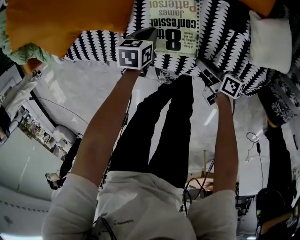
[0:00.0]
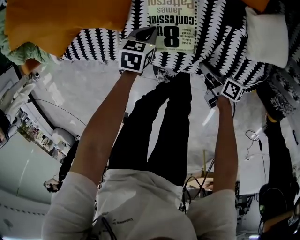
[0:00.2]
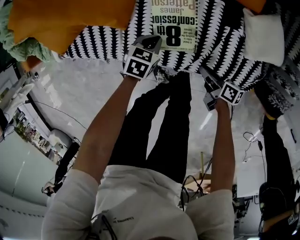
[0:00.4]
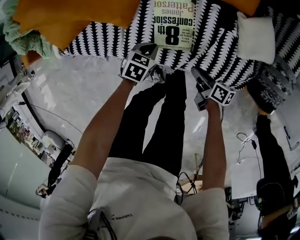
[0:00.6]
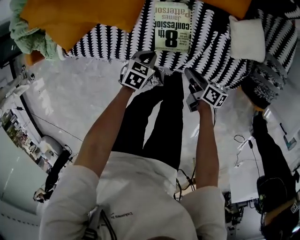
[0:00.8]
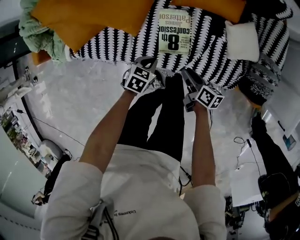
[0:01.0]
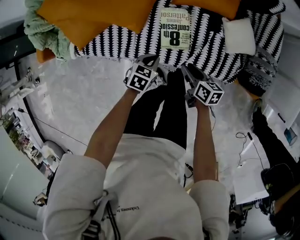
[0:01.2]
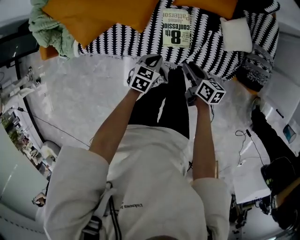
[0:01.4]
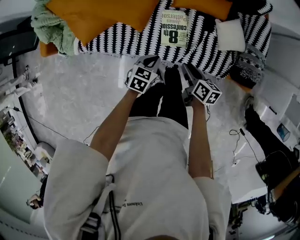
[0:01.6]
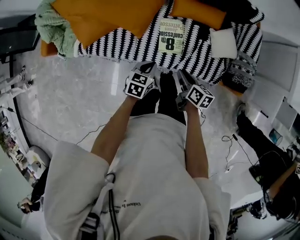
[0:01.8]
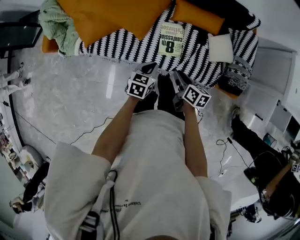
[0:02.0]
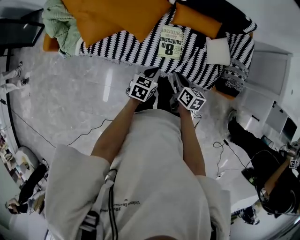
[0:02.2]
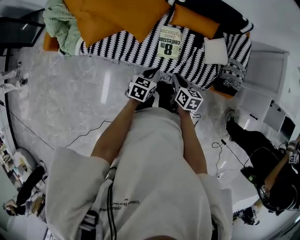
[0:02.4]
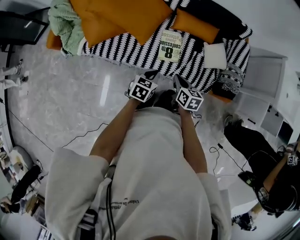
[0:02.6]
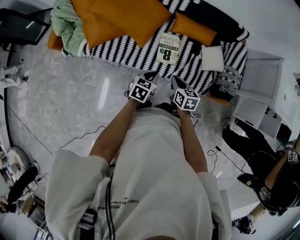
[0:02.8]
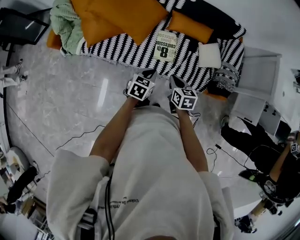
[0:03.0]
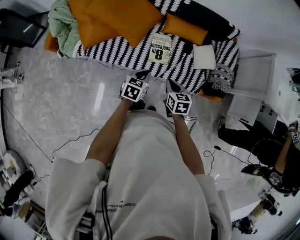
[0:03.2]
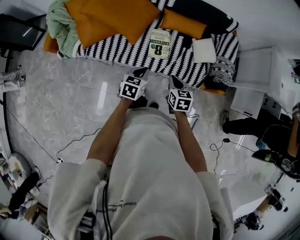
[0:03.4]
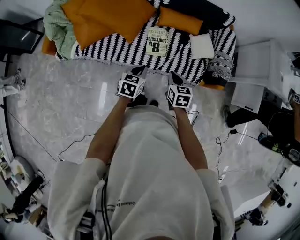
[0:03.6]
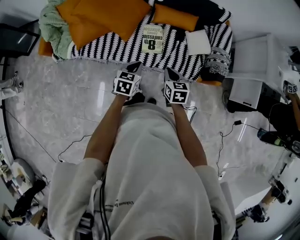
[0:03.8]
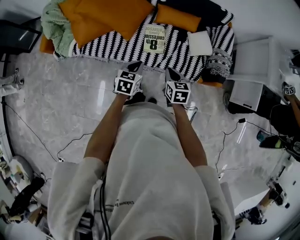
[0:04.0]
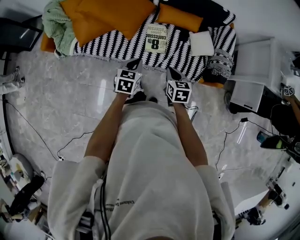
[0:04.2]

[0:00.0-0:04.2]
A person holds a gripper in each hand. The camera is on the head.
0:00.0 to 0:01.4: The left gripper travels upward and backward by roughly 25 cm, and swivels some 20 degrees; the right gripper heads upward, covering roughly 25 cm, and rotates some 30 degrees.
0:01.4 to 0:02.8: The two grippers go about 15 cm upward and backward. The right gripper rotates approximately 30 degrees, and closes.
0:02.8 to 0:04.2: The right gripper travels to the right by some 5 cm. The left gripper shifts by some 5 cm.

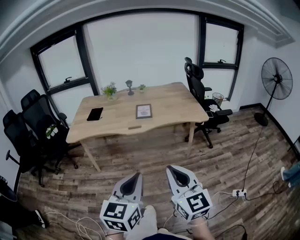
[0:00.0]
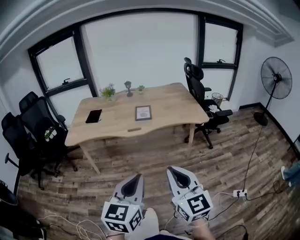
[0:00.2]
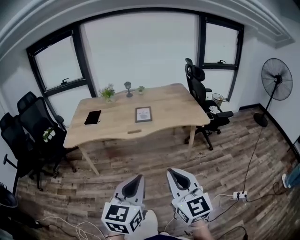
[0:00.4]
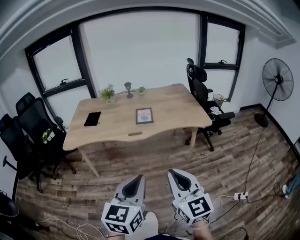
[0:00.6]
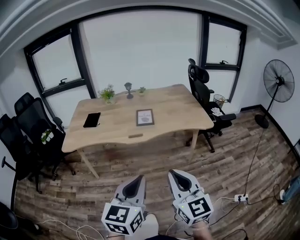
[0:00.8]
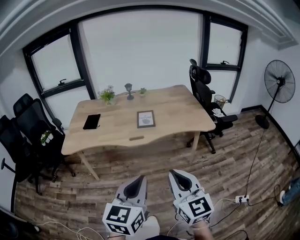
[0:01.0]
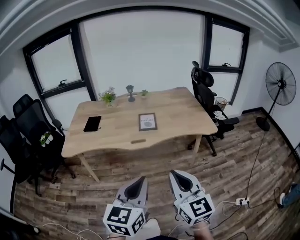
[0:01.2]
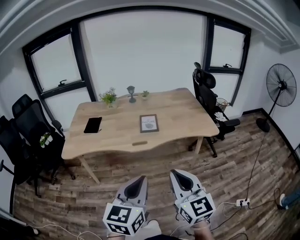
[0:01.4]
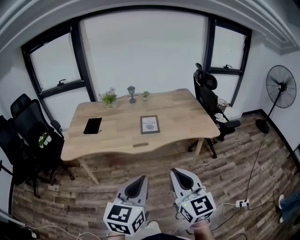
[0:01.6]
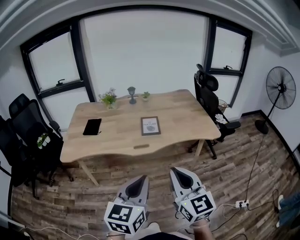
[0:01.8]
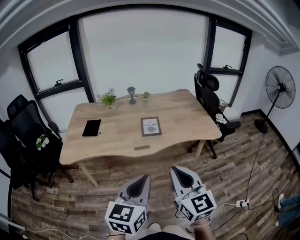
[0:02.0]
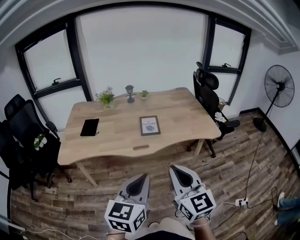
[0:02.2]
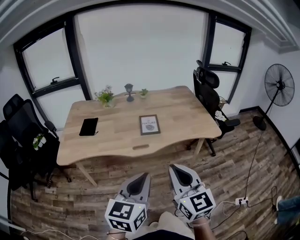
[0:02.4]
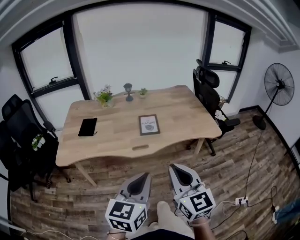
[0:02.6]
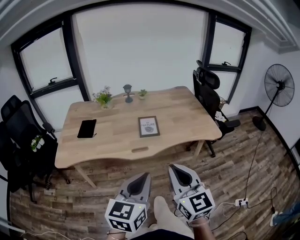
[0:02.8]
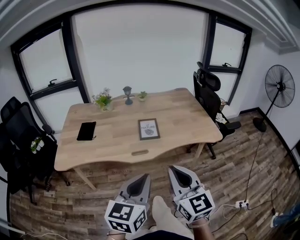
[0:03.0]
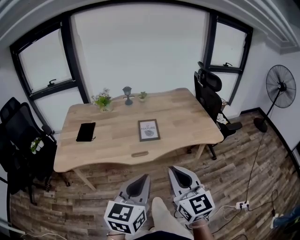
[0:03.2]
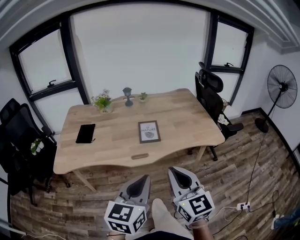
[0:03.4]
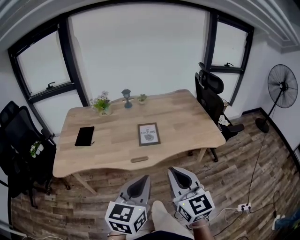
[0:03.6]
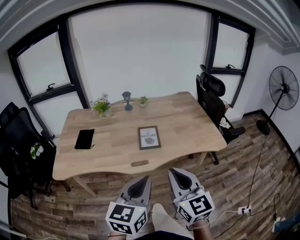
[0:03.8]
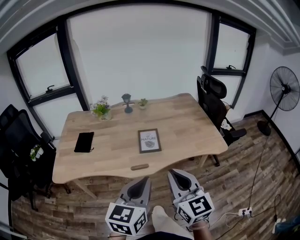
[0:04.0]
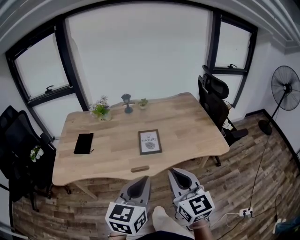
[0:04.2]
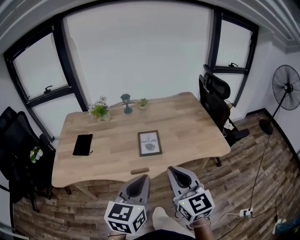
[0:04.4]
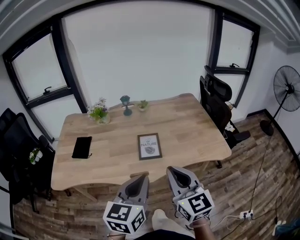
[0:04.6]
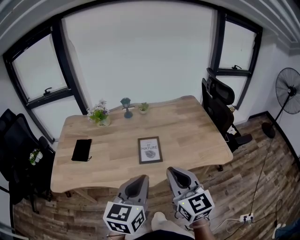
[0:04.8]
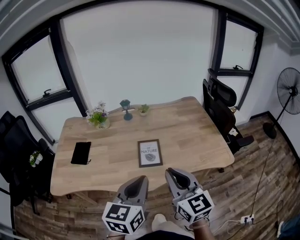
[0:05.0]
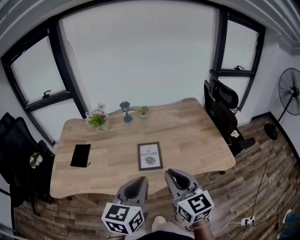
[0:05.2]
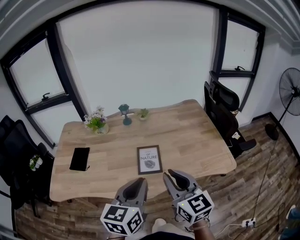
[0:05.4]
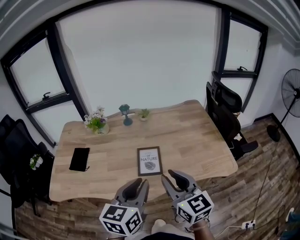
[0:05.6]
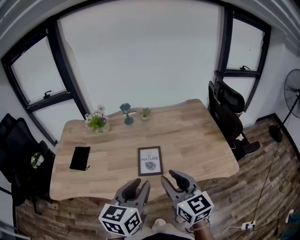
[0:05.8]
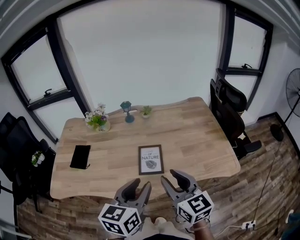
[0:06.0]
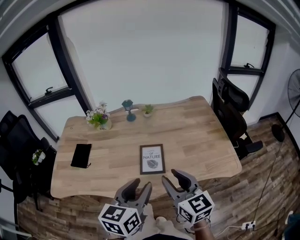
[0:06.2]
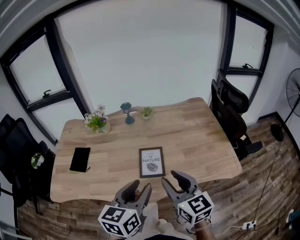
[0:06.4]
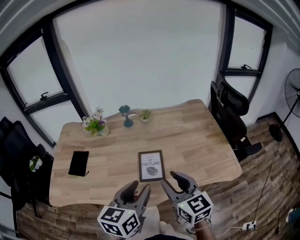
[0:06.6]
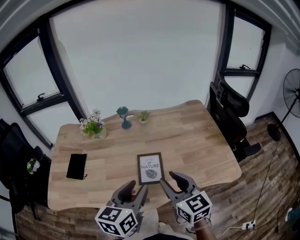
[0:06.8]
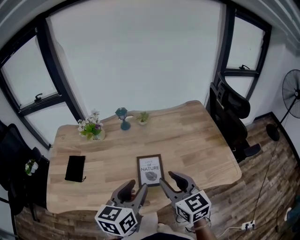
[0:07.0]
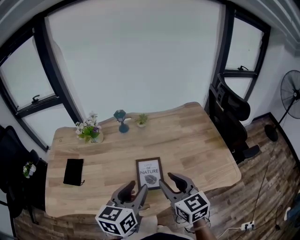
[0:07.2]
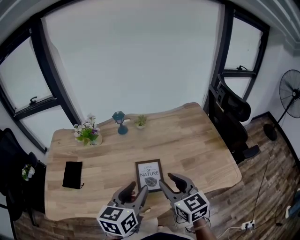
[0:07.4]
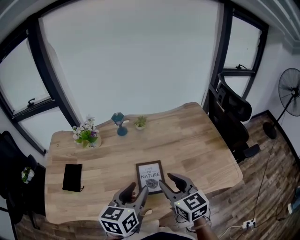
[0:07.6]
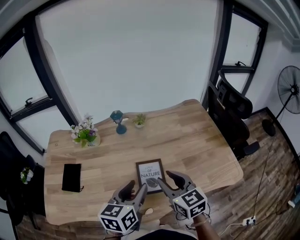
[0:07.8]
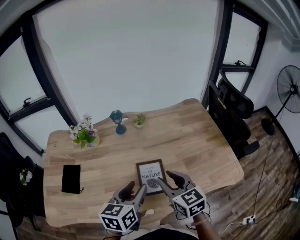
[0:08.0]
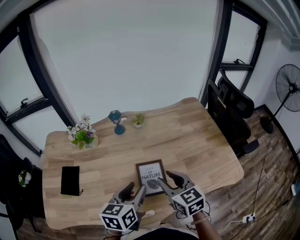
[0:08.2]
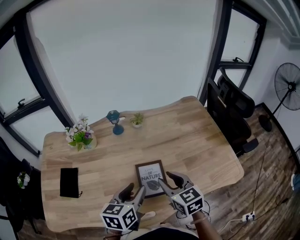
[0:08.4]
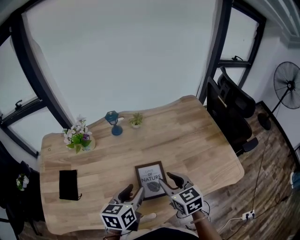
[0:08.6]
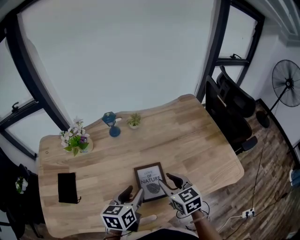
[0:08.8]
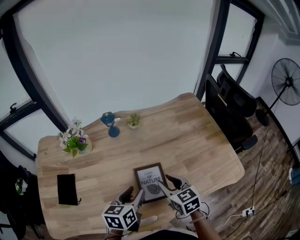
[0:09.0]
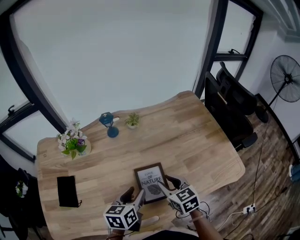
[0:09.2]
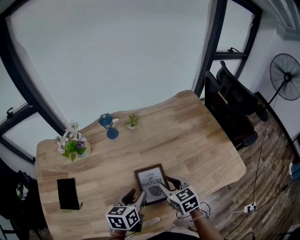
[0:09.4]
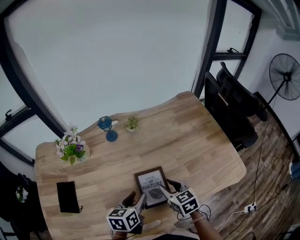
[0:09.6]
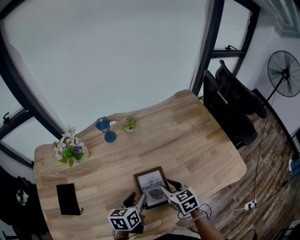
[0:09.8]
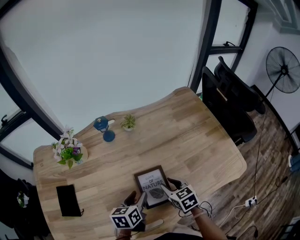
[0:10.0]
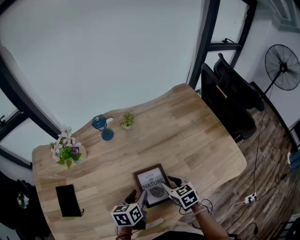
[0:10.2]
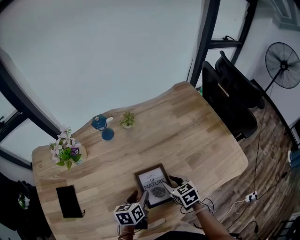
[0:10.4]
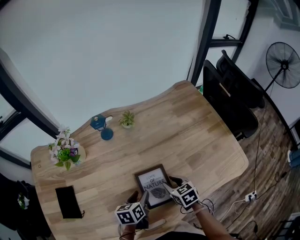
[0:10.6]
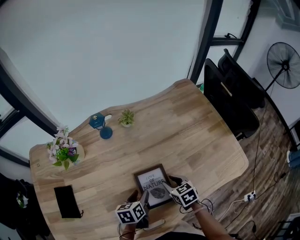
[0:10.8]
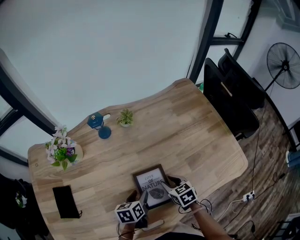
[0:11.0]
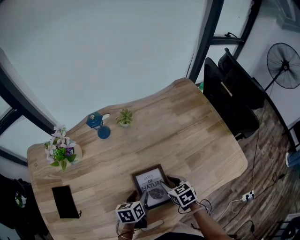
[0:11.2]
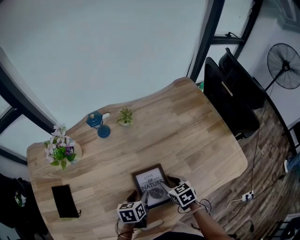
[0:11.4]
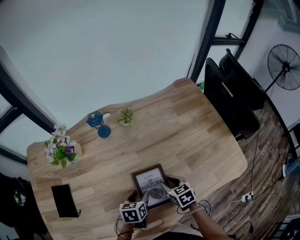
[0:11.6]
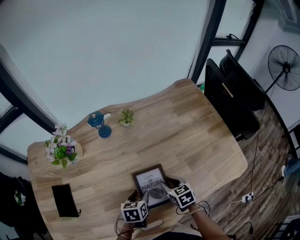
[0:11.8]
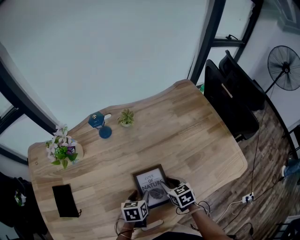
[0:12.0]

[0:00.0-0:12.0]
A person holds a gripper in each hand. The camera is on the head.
0:00.0 to 0:01.6: The two grippers go some 20 cm forward.
0:01.6 to 0:03.0: The two grippers go roughly 10 cm forward.
0:03.0 to 0:04.4: Both grippers move forward, some 15 cm.
0:04.4 to 0:06.0: Both grippers move forward, approximately 15 cm. The left gripper opens up. The right gripper opens up.
0:06.0 to 0:07.6: The right gripper shifts approximately 15 cm forward and downward, while the left gripper moves forward, approximately 15 cm.
0:07.6 to 0:09.0: Both grippers travel together downward and forward, some 15 cm.
0:09.0 to 0:10.4: The grippers both shift downward by some 10 cm.
0:10.4 to 0:12.0: The grippers stay close to where they were, moving slightly.

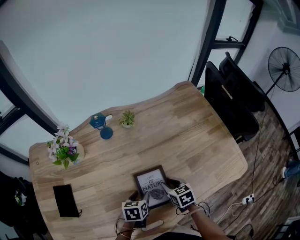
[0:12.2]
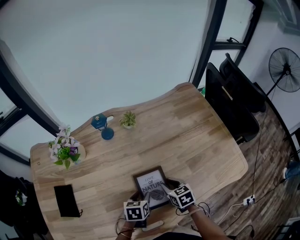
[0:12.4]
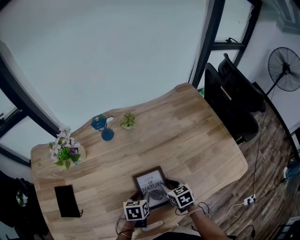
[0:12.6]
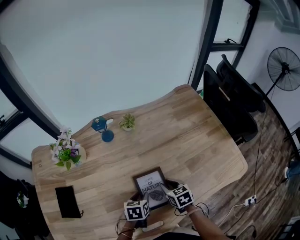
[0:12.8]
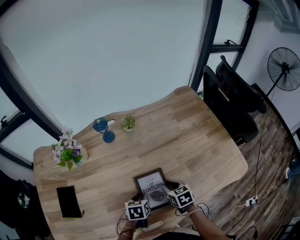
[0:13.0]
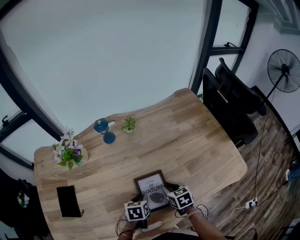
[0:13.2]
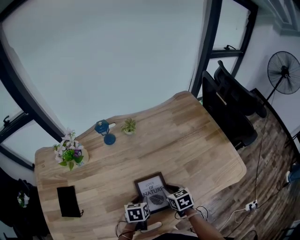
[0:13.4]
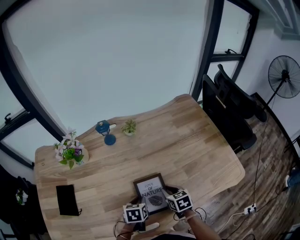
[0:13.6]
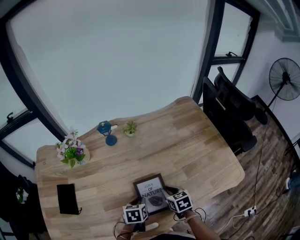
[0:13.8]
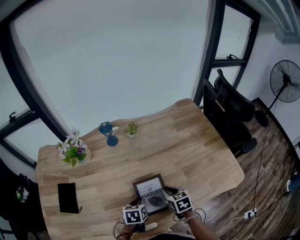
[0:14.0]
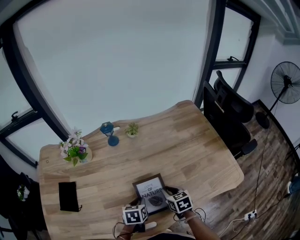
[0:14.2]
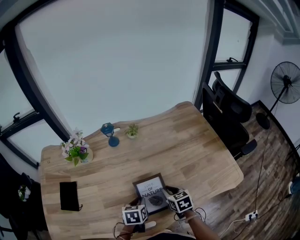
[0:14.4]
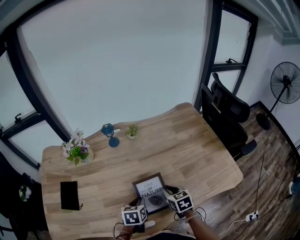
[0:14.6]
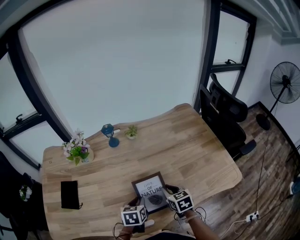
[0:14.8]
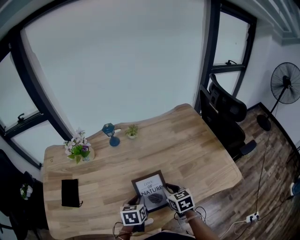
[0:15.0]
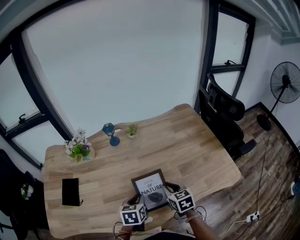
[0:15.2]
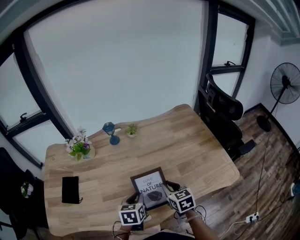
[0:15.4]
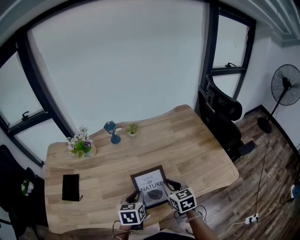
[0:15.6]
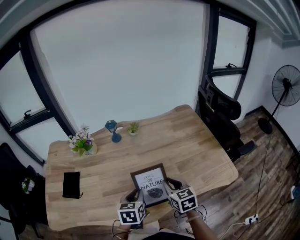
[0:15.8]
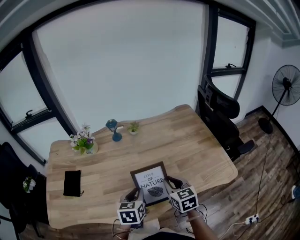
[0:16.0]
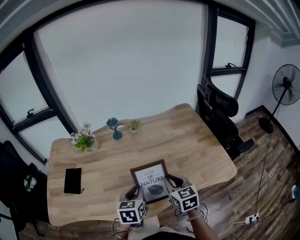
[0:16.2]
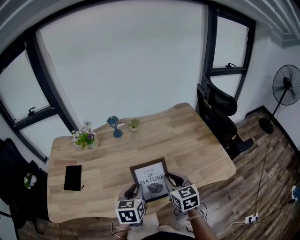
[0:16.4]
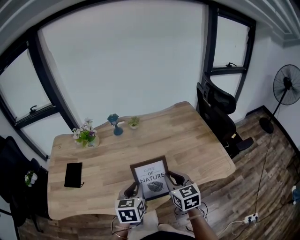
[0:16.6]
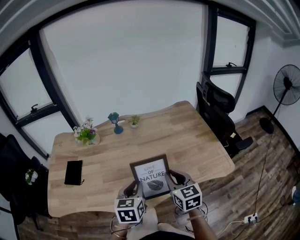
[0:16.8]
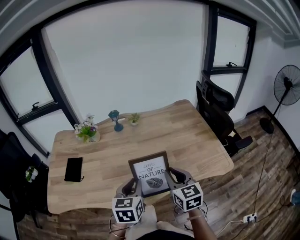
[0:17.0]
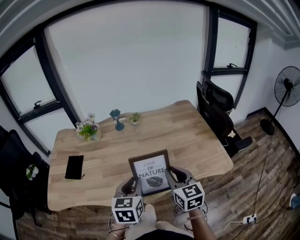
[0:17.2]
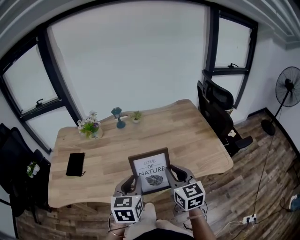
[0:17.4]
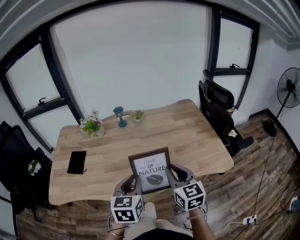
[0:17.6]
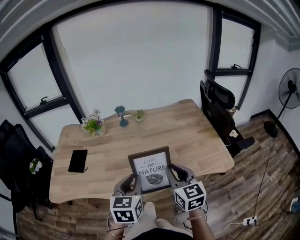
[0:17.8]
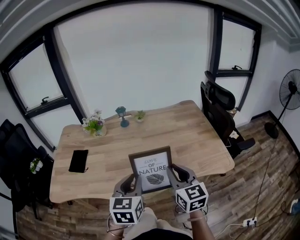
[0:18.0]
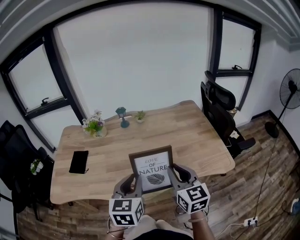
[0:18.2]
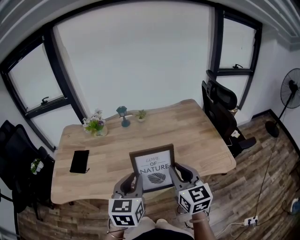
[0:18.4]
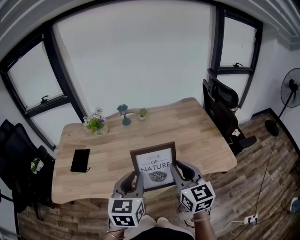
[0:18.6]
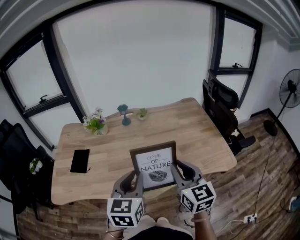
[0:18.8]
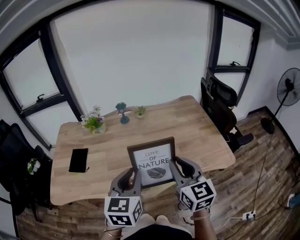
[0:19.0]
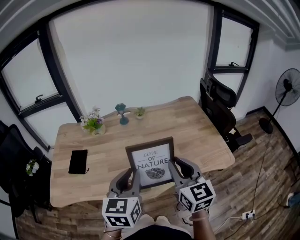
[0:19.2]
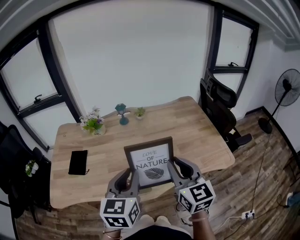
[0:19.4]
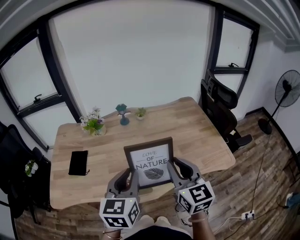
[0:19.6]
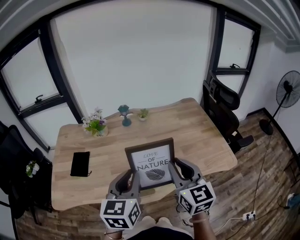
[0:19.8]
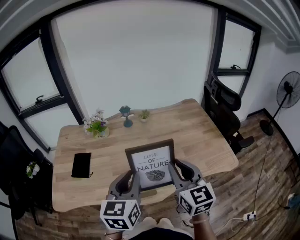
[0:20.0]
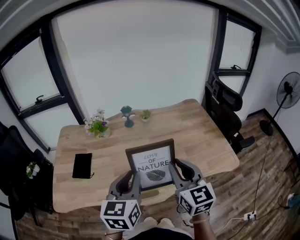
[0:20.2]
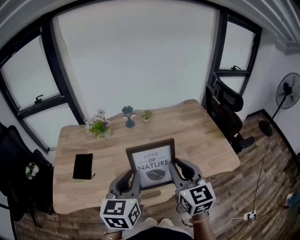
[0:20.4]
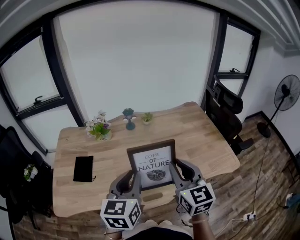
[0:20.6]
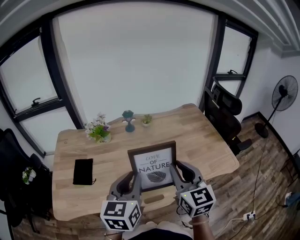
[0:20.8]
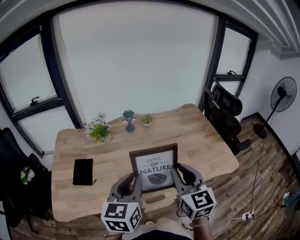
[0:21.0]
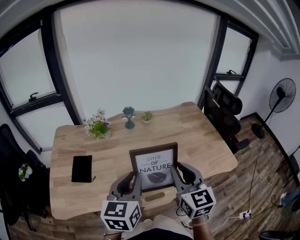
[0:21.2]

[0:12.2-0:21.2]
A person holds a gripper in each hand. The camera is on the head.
0:12.2 to 0:13.8: The left gripper closes.
0:13.8 to 0:15.2: Both grippers move upward, about 10 cm.
0:15.2 to 0:16.6: Both grippers travel together upward and backward, approximately 15 cm.
0:16.6 to 0:18.2: The grippers both shift upward and backward by approximately 10 cm.
0:18.2 to 0:19.8: The left gripper moves to the left, roughly 5 cm; the right gripper shifts about 10 cm to the left and upward.
0:19.8 to 0:21.2: The two grippers go some 5 cm to the left.
